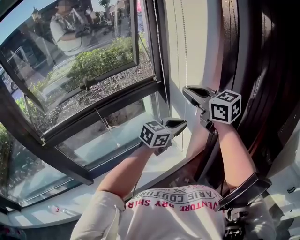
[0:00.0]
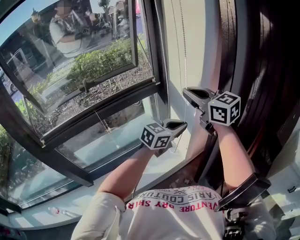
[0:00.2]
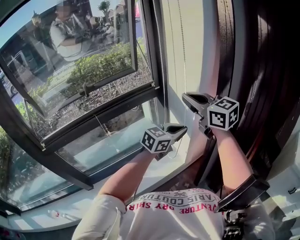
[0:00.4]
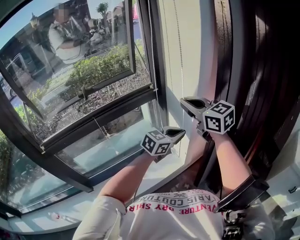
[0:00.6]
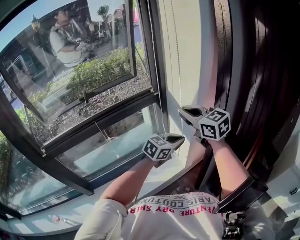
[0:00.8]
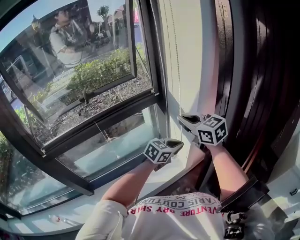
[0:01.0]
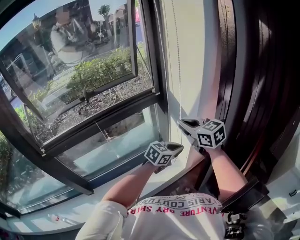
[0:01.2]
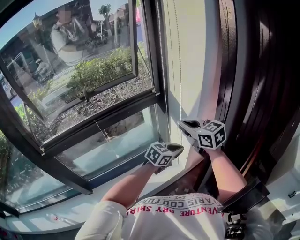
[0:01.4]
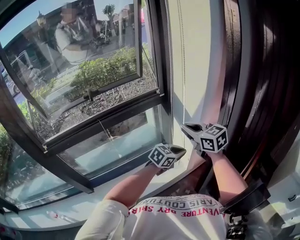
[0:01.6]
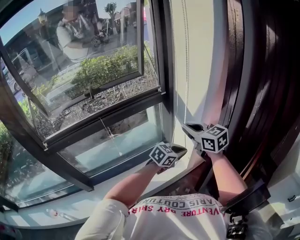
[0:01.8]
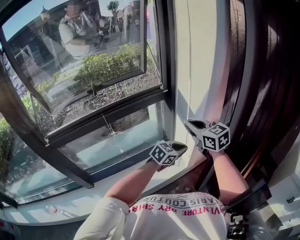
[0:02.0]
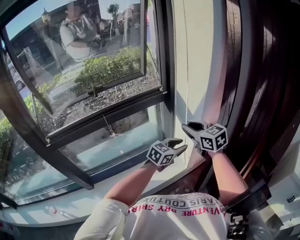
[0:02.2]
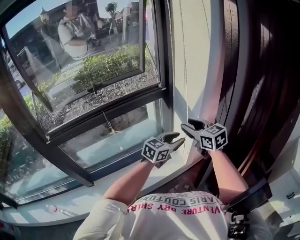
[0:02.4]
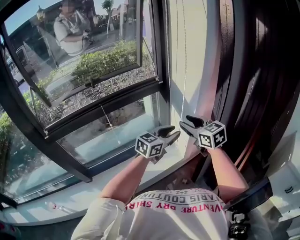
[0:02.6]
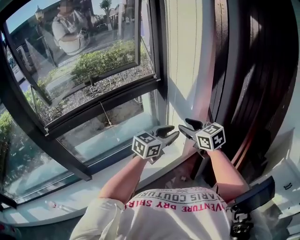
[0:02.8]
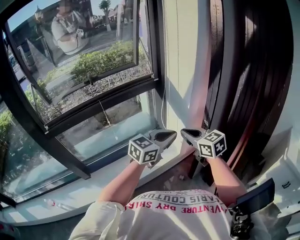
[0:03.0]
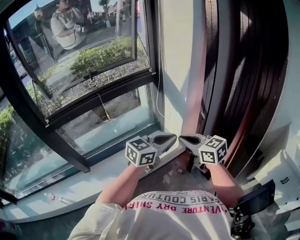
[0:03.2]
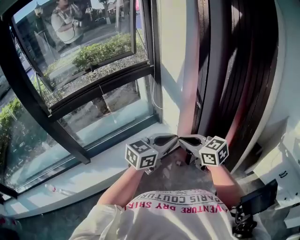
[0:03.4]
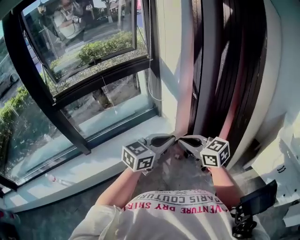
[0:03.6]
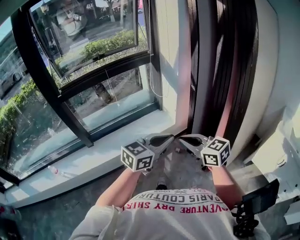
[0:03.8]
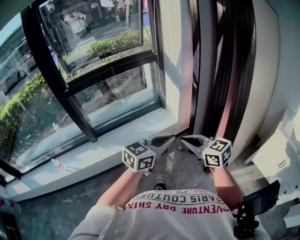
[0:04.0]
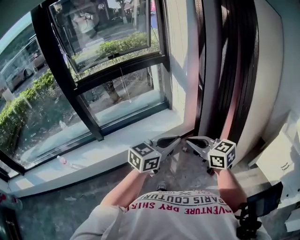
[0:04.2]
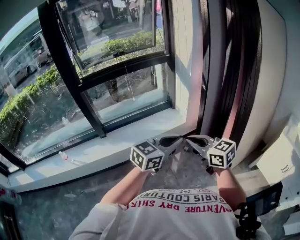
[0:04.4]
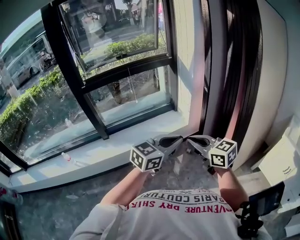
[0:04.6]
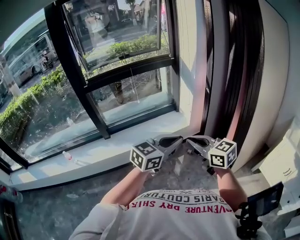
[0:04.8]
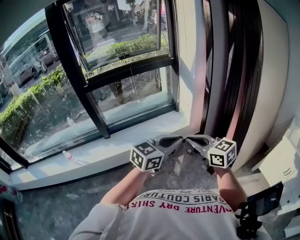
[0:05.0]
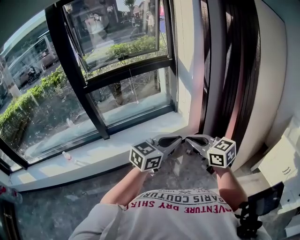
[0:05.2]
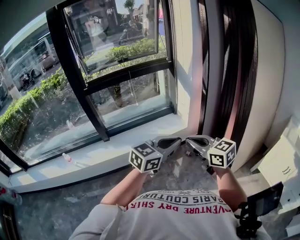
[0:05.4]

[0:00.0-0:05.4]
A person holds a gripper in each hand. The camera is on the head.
0:00.0 to 0:01.4: The two grippers go about 10 cm downward.
0:01.4 to 0:02.8: The right gripper is displaced backward by roughly 10 cm, and opens its fingers, while the left gripper moves upward and backward, about 10 cm, and opens its fingers.
0:02.8 to 0:04.0: The two grippers go roughly 40 cm backward. The right gripper closes; the left gripper closes its fingers.
0:04.0 to 0:05.4: The left gripper shifts approximately 5 cm backward; the right gripper shifts by approximately 5 cm.

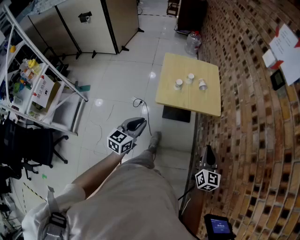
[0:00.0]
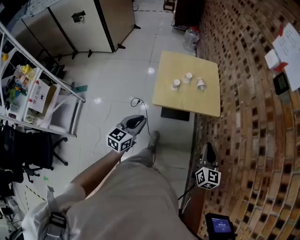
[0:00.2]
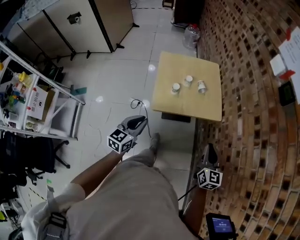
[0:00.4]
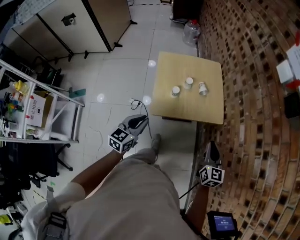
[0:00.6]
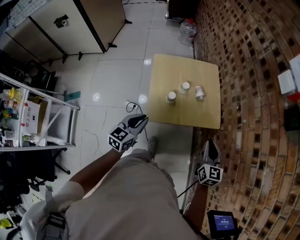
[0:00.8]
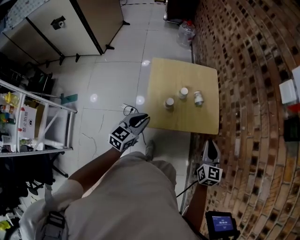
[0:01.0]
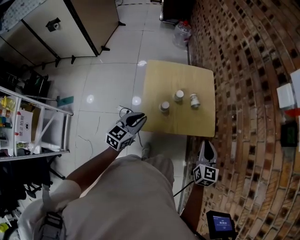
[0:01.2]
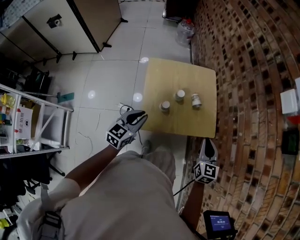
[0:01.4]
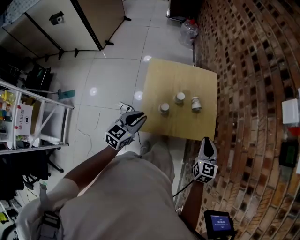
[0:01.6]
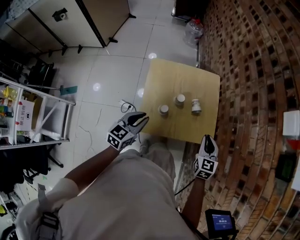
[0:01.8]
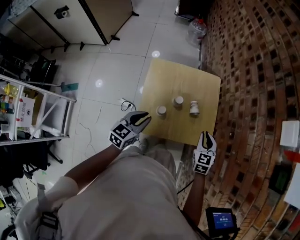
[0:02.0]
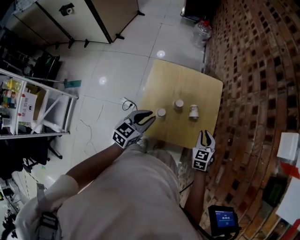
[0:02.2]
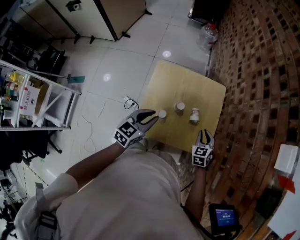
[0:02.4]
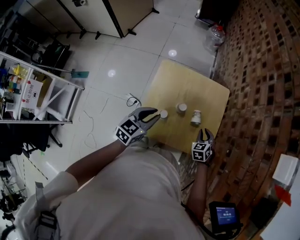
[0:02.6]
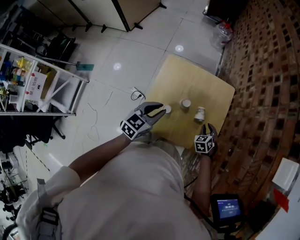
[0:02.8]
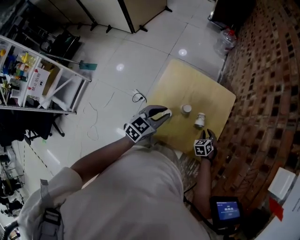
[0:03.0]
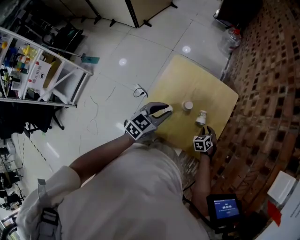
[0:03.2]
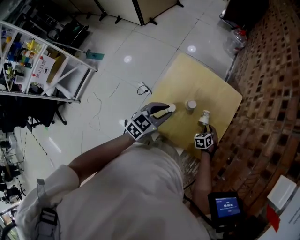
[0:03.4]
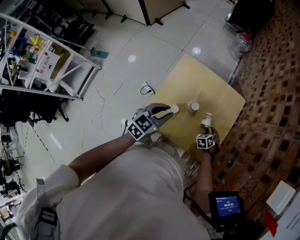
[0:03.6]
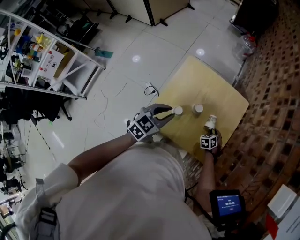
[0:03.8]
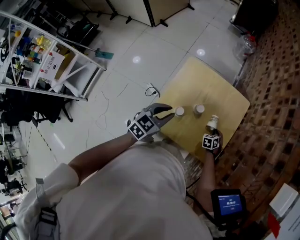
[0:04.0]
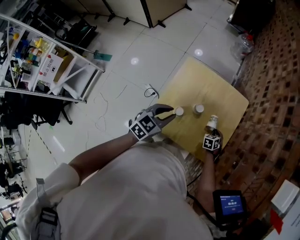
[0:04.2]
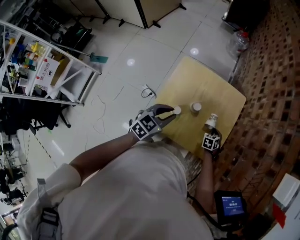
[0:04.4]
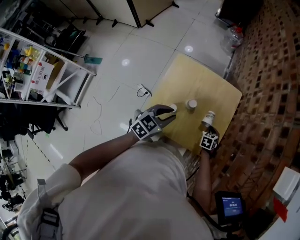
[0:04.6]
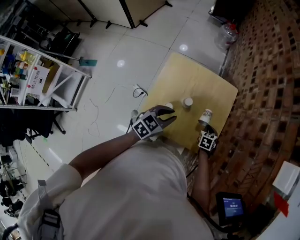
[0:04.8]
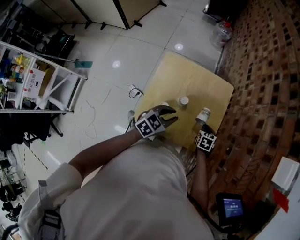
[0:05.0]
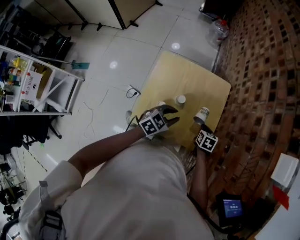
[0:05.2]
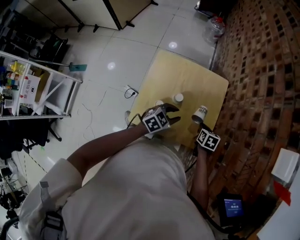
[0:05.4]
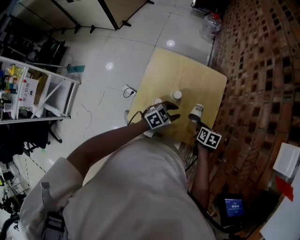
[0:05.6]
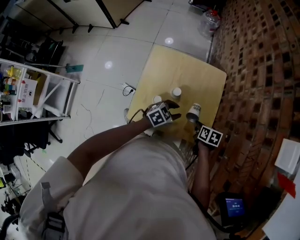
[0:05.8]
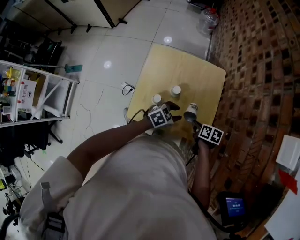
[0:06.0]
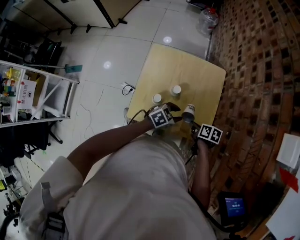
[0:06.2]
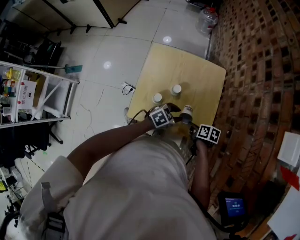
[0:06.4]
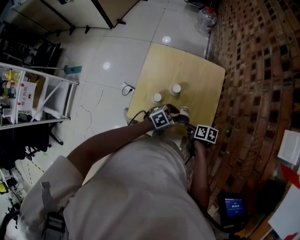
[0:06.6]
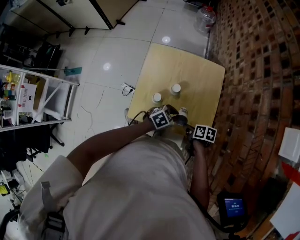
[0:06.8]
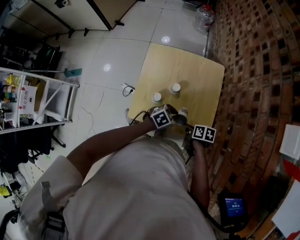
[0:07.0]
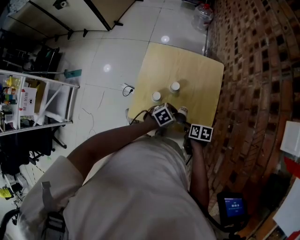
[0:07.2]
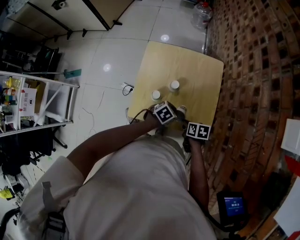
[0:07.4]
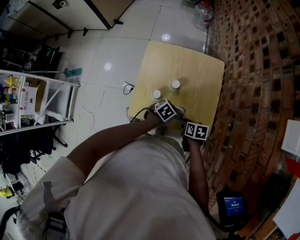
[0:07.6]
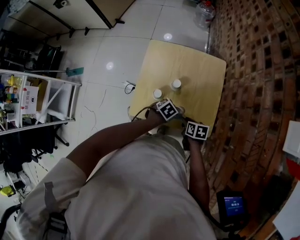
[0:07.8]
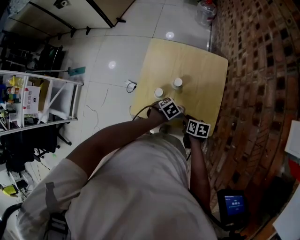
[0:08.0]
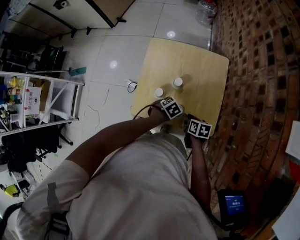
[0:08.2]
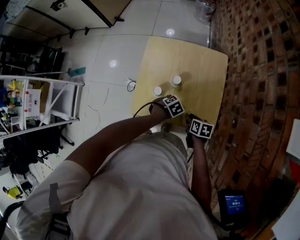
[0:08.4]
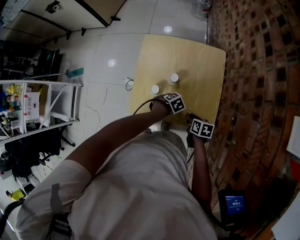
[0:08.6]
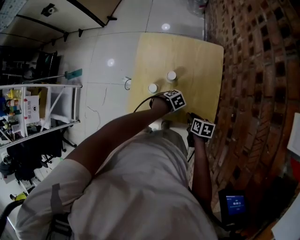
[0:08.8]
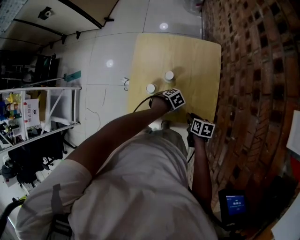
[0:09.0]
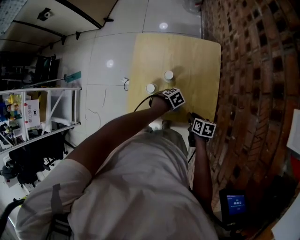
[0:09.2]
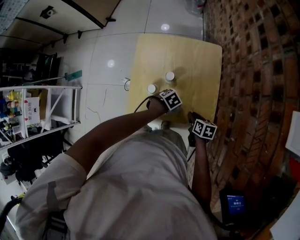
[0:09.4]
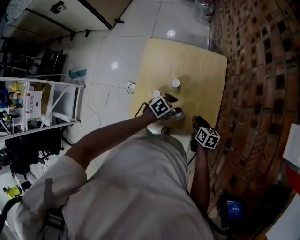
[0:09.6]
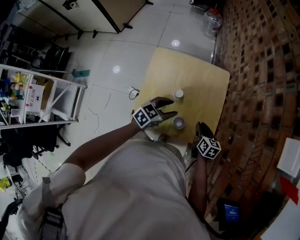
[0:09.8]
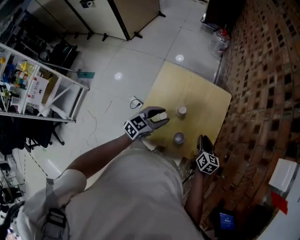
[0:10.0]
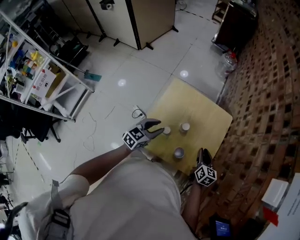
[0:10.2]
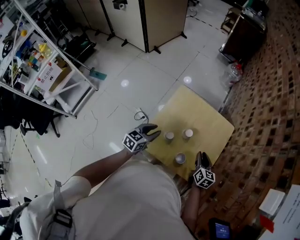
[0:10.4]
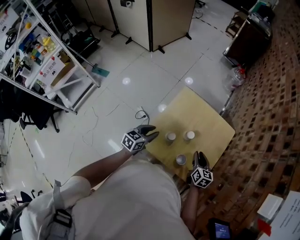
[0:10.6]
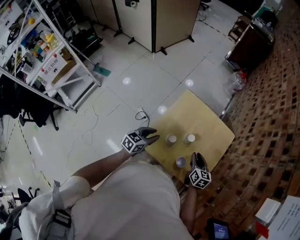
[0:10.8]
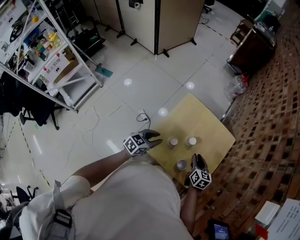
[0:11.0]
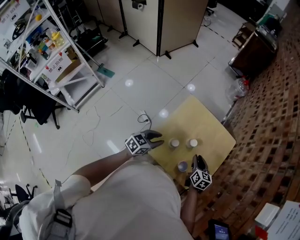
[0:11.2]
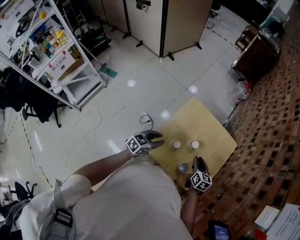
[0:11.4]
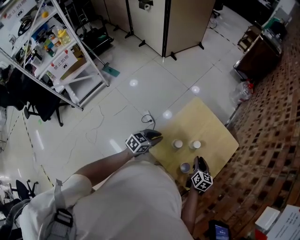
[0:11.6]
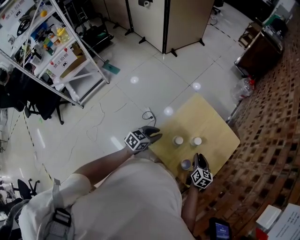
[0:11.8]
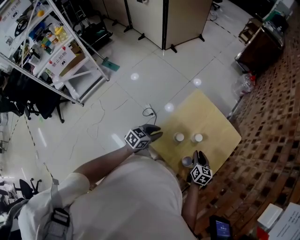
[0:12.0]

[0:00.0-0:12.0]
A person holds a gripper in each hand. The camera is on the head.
0:00.0 to 0:01.6: Both grippers move forward, approximately 35 cm.
0:01.6 to 0:03.0: The left gripper is displaced forward and to the right by approximately 15 cm. Meanwhile the right gripper heads downward and forward, covering some 30 cm, and tips its fingers downward by some 30 degrees.
0:03.0 to 0:04.4: The right gripper heads downward, covering roughly 5 cm, and swivels approximately 20 degrees.
0:04.4 to 0:06.0: The right gripper moves upward and backward, approximately 15 cm, and rotates around the line of its fingers by about 40 degrees, clockwise from behind, while the left gripper heads to the right and downward, covering roughly 20 cm, swivels some 30 degrees, and opens its fingers.
0:06.0 to 0:07.6: The left gripper moves downward, approximately 5 cm, turns by about 20 degrees, and closes its fingers, while the right gripper changes place by roughly 10 cm.
0:07.6 to 0:09.0: The left gripper heads downward, covering about 10 cm, and rotates some 30 degrees, while the right gripper shifts by roughly 5 cm.
0:09.0 to 0:10.4: The right gripper is displaced upward by about 15 cm, and swivels approximately 40 degrees; the left gripper moves upward, approximately 20 cm, tips its fingers upward by roughly 50 degrees, and opens its fingers.
0:10.4 to 0:12.0: The left gripper changes place by about 5 cm. Meanwhile the right gripper is displaced to the left by some 10 cm.

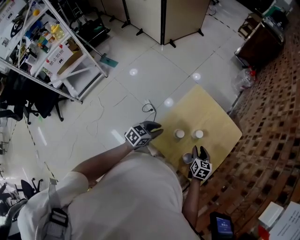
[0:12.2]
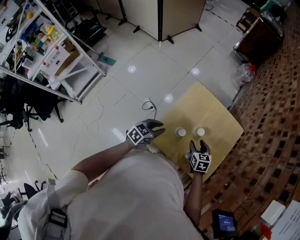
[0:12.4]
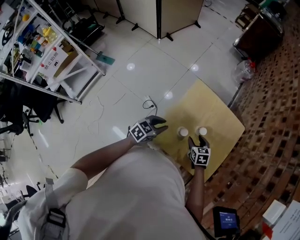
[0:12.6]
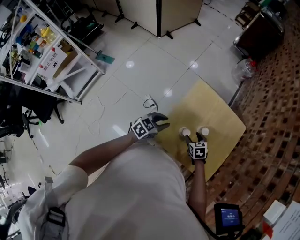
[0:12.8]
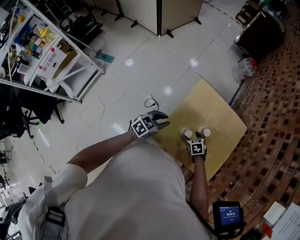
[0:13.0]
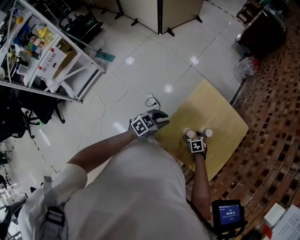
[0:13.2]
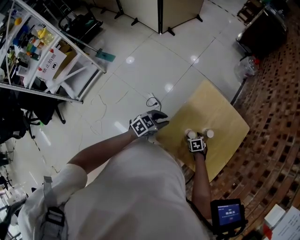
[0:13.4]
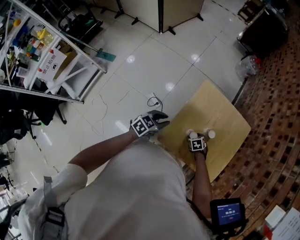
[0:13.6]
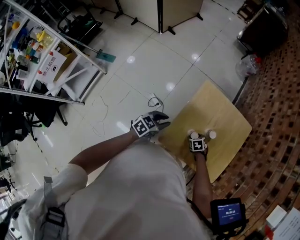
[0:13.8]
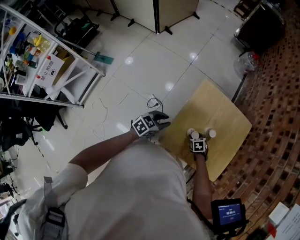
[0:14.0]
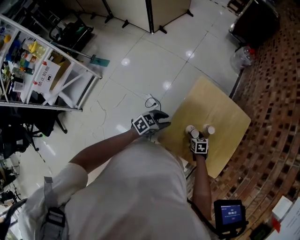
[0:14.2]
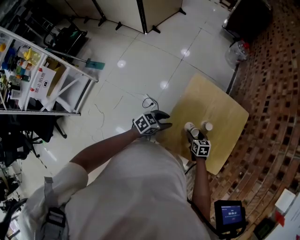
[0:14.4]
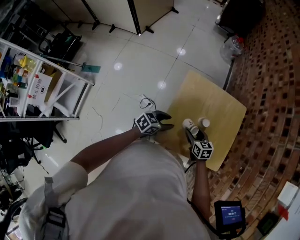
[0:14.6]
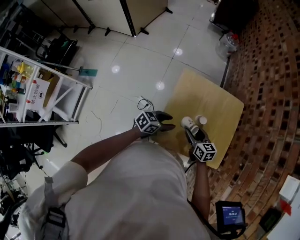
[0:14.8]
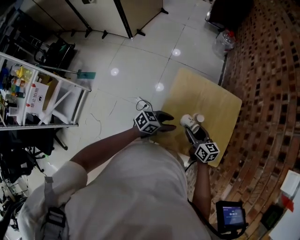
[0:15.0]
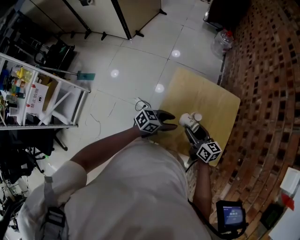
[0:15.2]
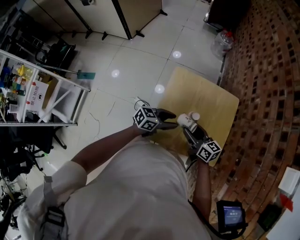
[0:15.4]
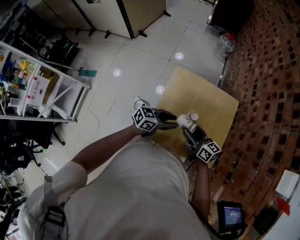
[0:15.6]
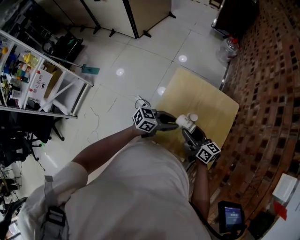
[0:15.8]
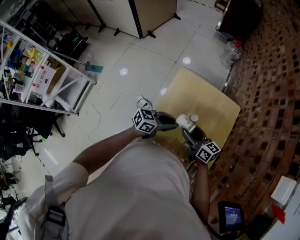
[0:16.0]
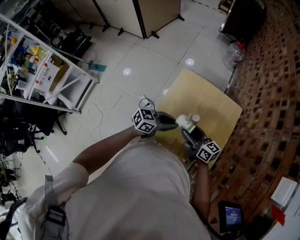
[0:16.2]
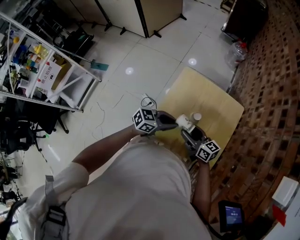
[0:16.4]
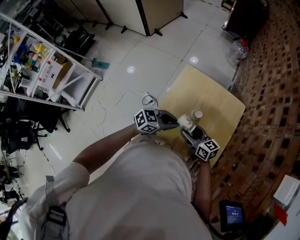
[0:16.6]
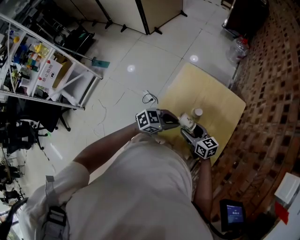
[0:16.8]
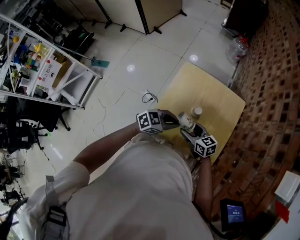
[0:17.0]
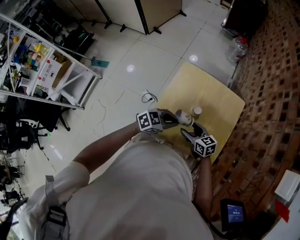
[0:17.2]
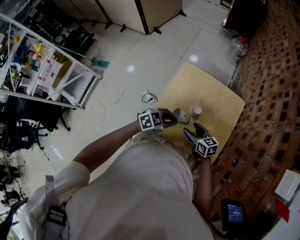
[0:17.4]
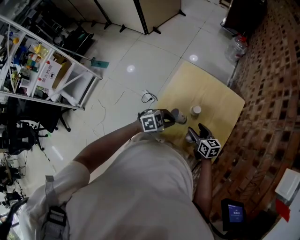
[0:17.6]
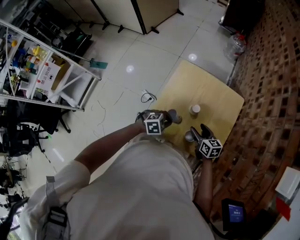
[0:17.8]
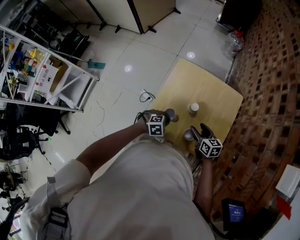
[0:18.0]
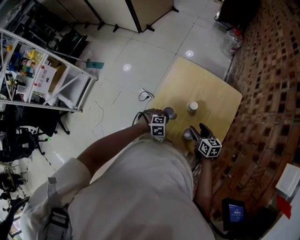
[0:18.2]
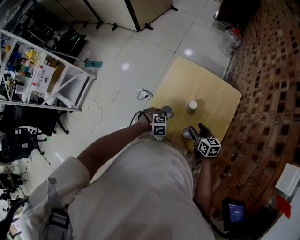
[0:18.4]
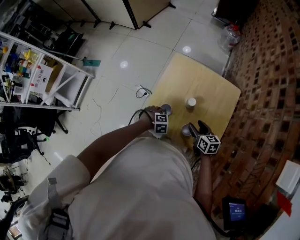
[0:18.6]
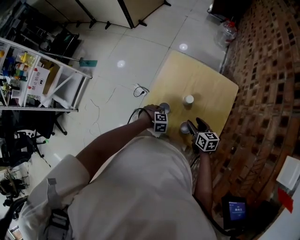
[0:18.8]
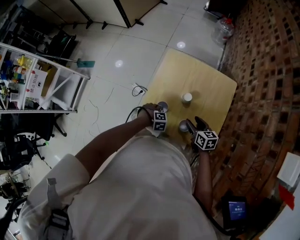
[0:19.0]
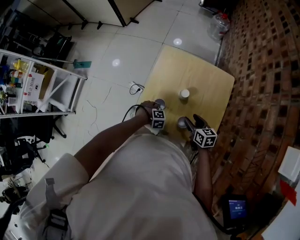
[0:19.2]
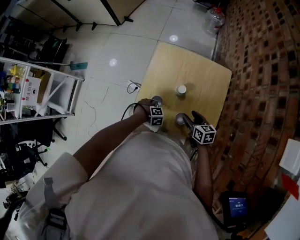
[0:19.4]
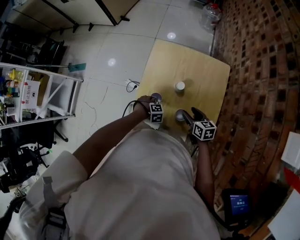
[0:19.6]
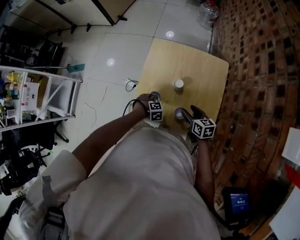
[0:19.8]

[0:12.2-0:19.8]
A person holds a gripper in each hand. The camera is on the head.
0:12.2 to 0:13.8: The right gripper shifts approximately 15 cm downward, points its fingers roughly 30 degrees further downward, and opens its fingers, while the left gripper shifts by some 10 cm.
0:13.8 to 0:15.2: The right gripper is displaced upward by approximately 25 cm, and angles its fingers upward, by approximately 60 degrees. Meanwhile the left gripper moves some 15 cm, swivels about 30 degrees, and opens up.
0:15.2 to 0:16.8: The left gripper shifts by roughly 10 cm, and closes up. Meanwhile the right gripper moves approximately 5 cm, and swivels roughly 20 degrees.
0:16.8 to 0:18.2: The left gripper shifts some 15 cm downward, and angles its fingers downward, by some 40 degrees. The right gripper changes place by about 10 cm.
0:18.2 to 0:19.8: The left gripper moves downward, roughly 10 cm, and opens its fingers.
